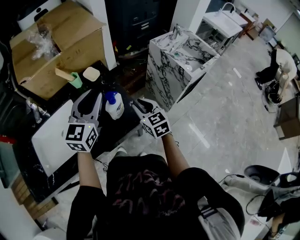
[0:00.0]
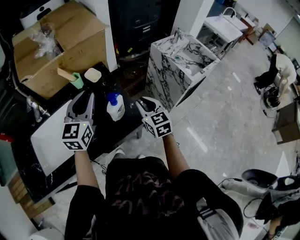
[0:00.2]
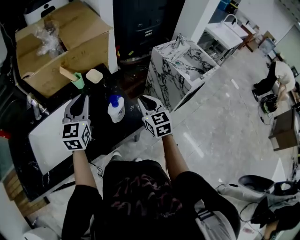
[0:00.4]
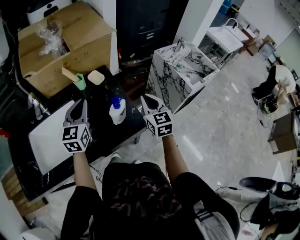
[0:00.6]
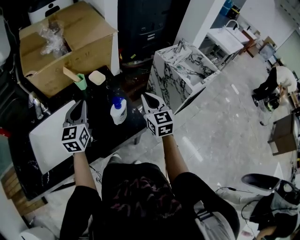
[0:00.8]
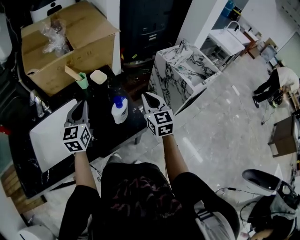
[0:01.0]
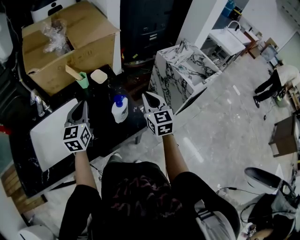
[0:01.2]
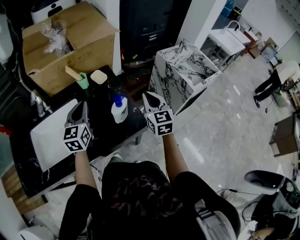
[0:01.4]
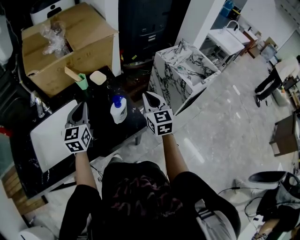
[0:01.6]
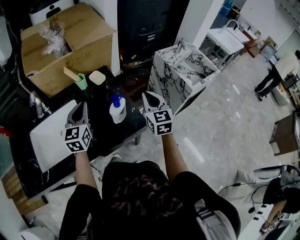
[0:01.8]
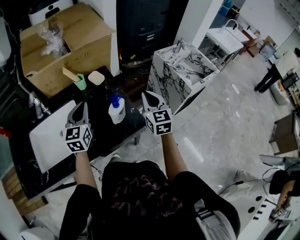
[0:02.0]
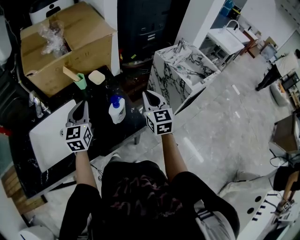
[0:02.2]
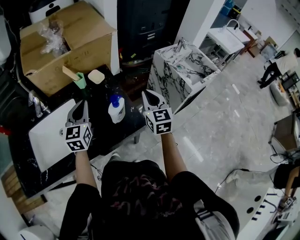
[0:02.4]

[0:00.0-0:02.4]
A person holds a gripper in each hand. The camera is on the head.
0:00.0 to 0:01.2: The left gripper heads to the left and downward, covering approximately 10 cm, and closes, while the right gripper heads upward, covering approximately 10 cm, and closes.
0:01.2 to 0:02.4: The grippers stay close to where they were, moving slightly.

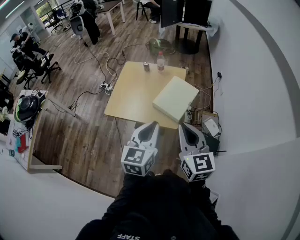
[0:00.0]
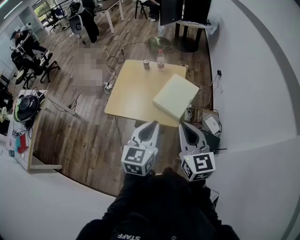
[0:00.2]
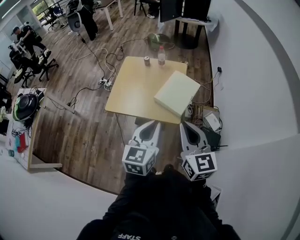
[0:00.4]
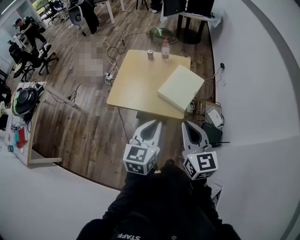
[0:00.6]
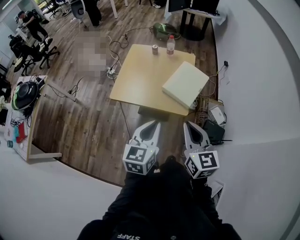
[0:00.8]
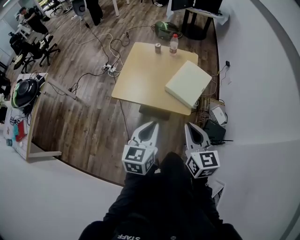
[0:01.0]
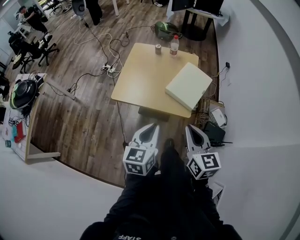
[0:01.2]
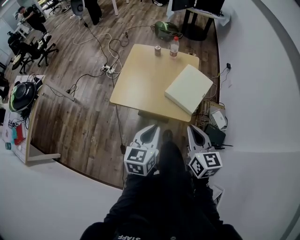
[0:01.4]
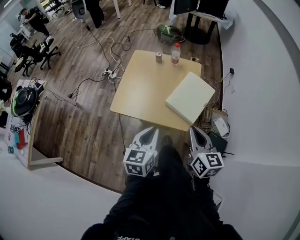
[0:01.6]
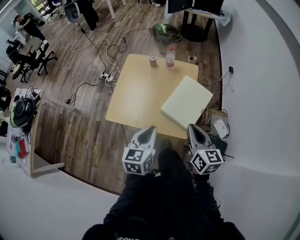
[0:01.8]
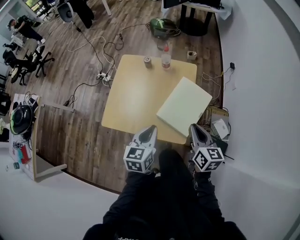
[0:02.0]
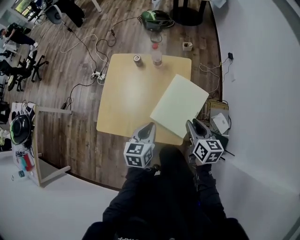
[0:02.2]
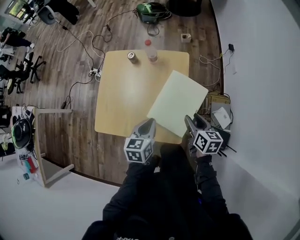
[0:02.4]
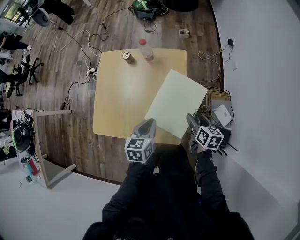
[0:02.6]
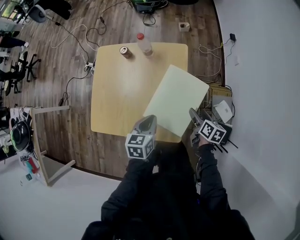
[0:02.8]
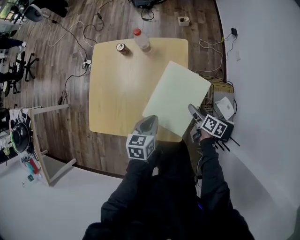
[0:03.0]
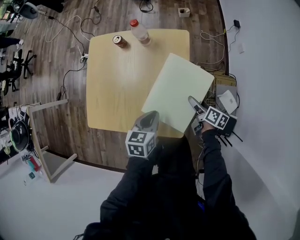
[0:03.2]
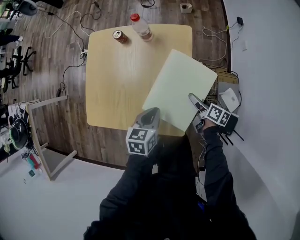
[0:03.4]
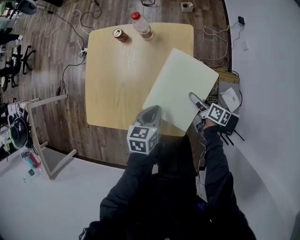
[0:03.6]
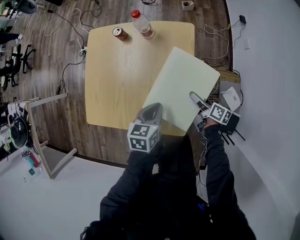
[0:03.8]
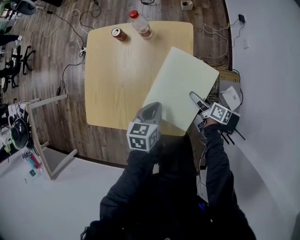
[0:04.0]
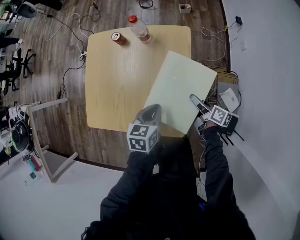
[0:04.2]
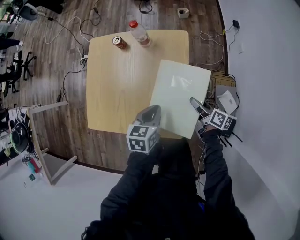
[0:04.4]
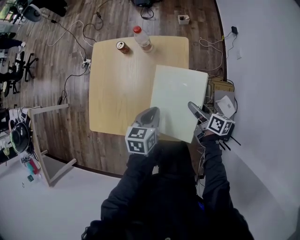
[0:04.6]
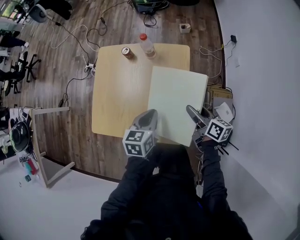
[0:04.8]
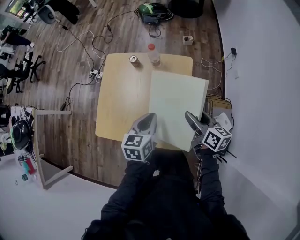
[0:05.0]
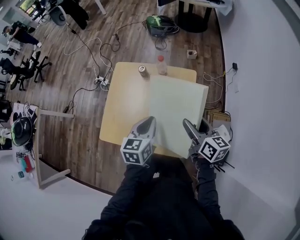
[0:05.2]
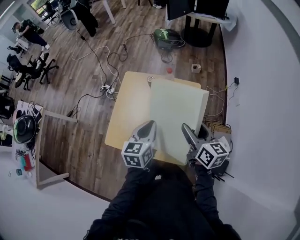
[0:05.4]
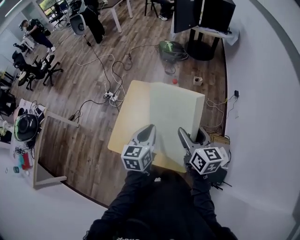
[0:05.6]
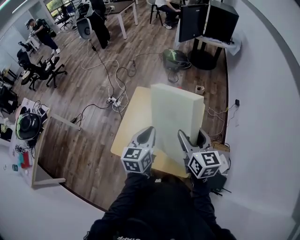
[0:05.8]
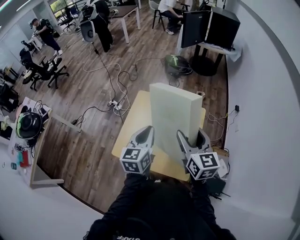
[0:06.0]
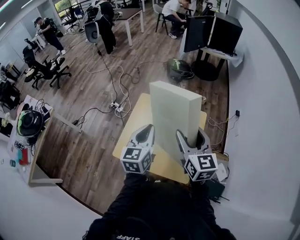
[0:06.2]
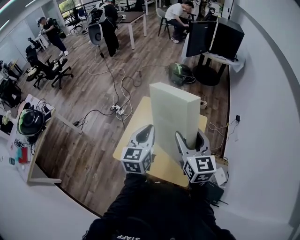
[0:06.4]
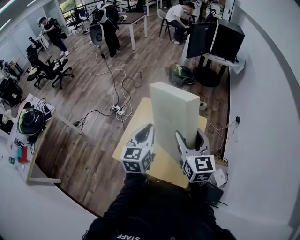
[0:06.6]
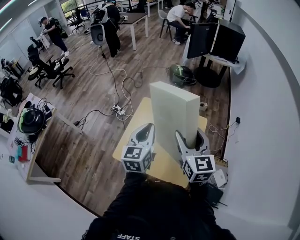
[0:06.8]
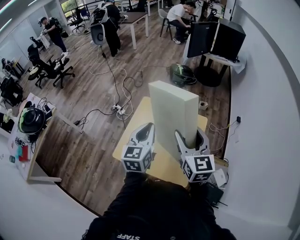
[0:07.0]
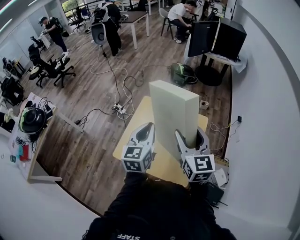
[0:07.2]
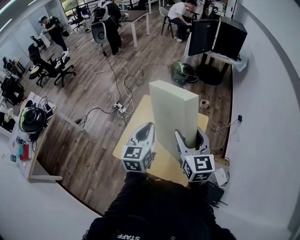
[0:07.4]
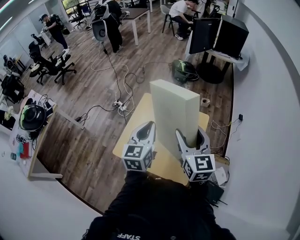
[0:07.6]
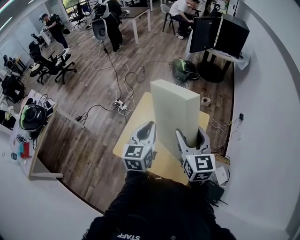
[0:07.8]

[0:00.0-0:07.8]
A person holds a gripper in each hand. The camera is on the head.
0:00.0 to 0:01.6: The left gripper goes approximately 15 cm downward, to the left and forward; the right gripper travels downward and forward by about 15 cm.
0:01.6 to 0:03.2: The right gripper is displaced downward, forward and to the right by some 50 cm, twists some 50 degrees clockwise, seen from behind, and opens up; the left gripper travels forward, downward and to the right by approximately 35 cm, and turns by some 30 degrees.
0:03.2 to 0:04.6: The right gripper is displaced upward by about 10 cm.
0:04.6 to 0:06.2: The grippers both shift upward and to the left by approximately 40 cm. The left gripper swivels roughly 40 degrees; the right gripper twists about 60 degrees counterclockwise, seen from behind.
0:06.2 to 0:07.8: The grippers move only a little.

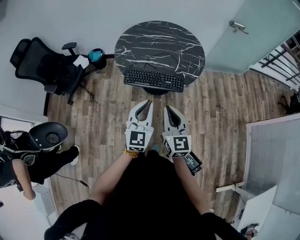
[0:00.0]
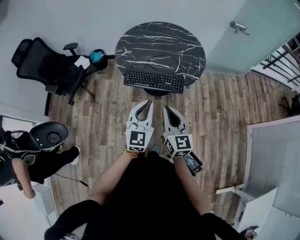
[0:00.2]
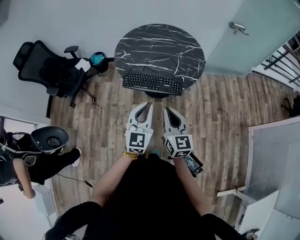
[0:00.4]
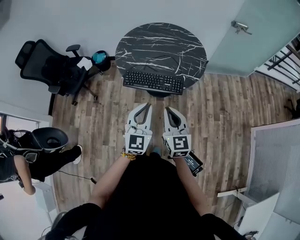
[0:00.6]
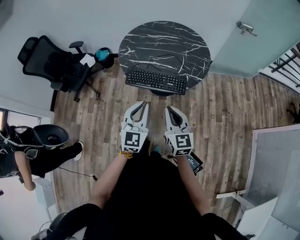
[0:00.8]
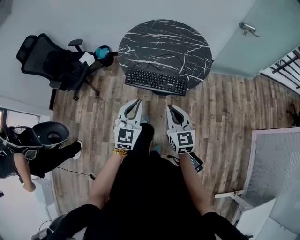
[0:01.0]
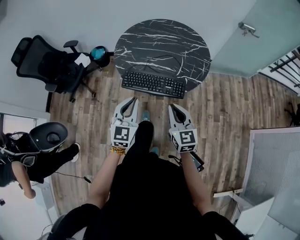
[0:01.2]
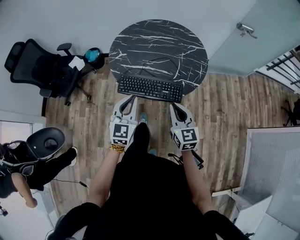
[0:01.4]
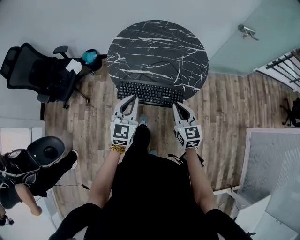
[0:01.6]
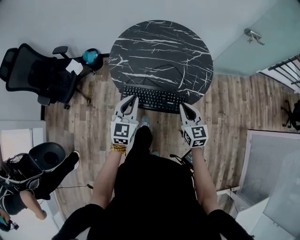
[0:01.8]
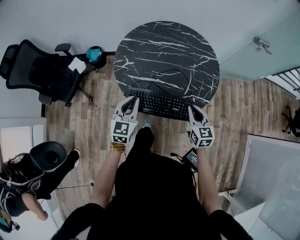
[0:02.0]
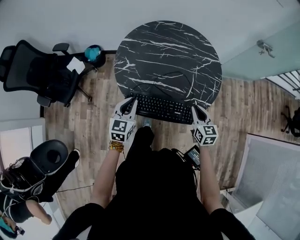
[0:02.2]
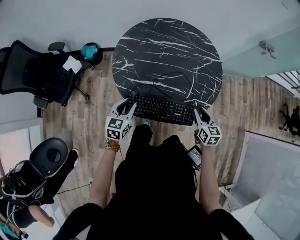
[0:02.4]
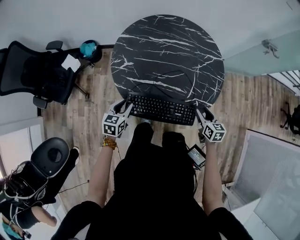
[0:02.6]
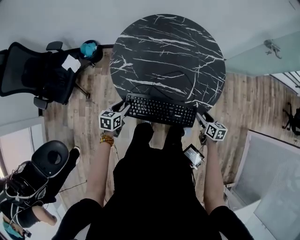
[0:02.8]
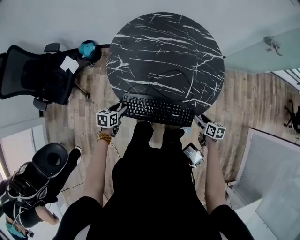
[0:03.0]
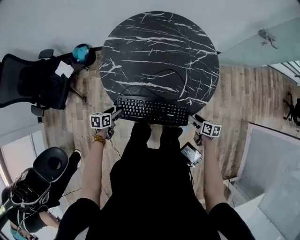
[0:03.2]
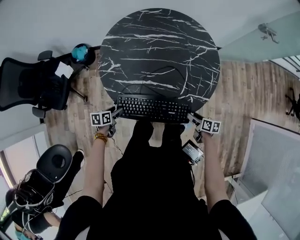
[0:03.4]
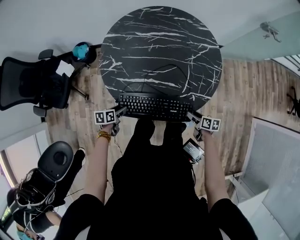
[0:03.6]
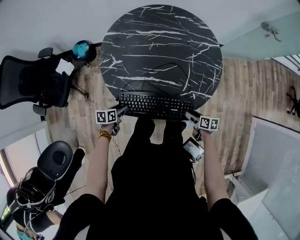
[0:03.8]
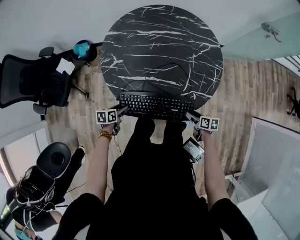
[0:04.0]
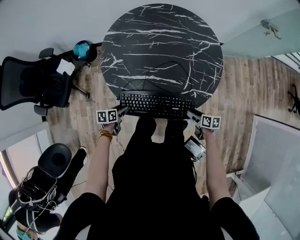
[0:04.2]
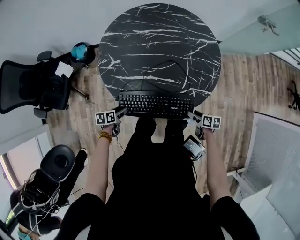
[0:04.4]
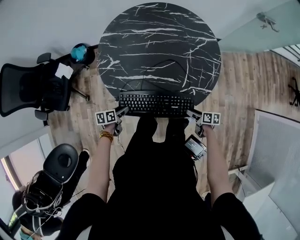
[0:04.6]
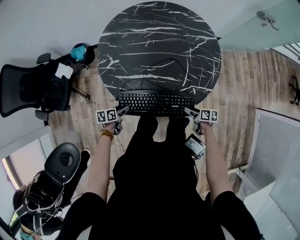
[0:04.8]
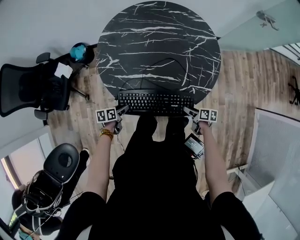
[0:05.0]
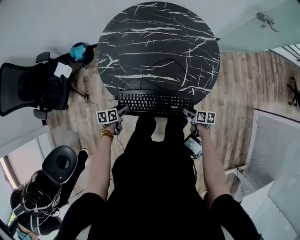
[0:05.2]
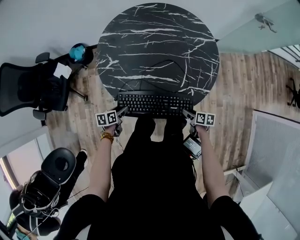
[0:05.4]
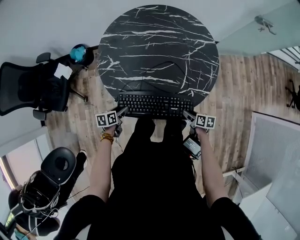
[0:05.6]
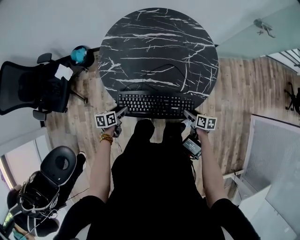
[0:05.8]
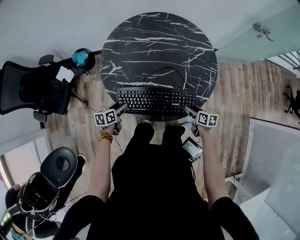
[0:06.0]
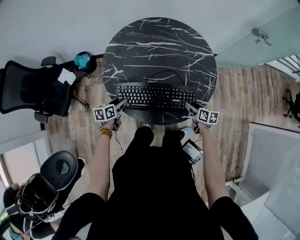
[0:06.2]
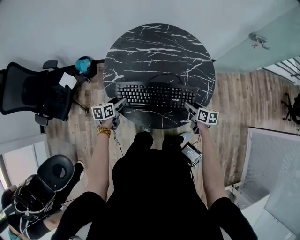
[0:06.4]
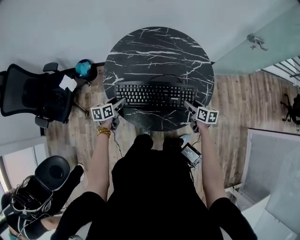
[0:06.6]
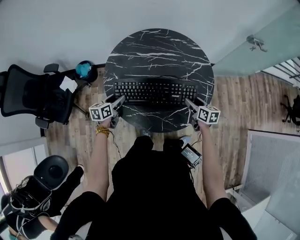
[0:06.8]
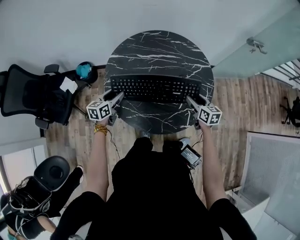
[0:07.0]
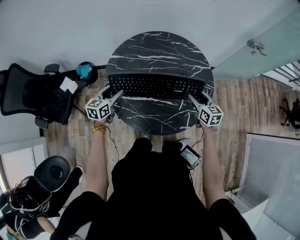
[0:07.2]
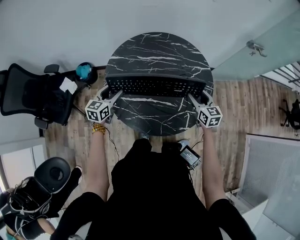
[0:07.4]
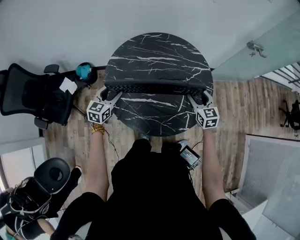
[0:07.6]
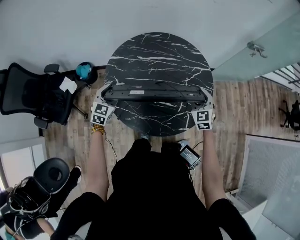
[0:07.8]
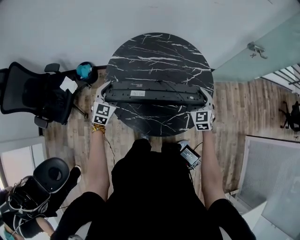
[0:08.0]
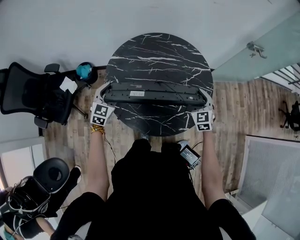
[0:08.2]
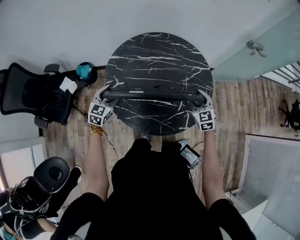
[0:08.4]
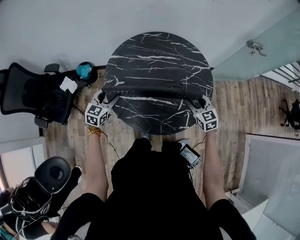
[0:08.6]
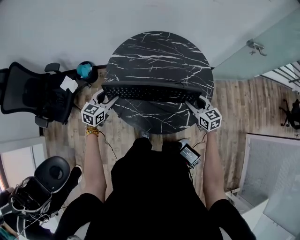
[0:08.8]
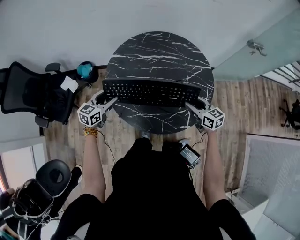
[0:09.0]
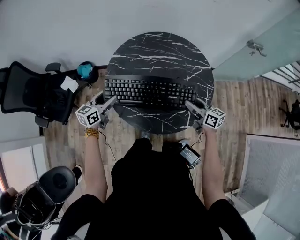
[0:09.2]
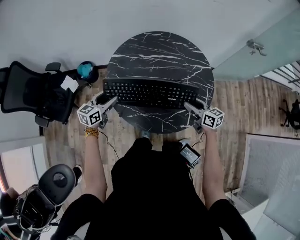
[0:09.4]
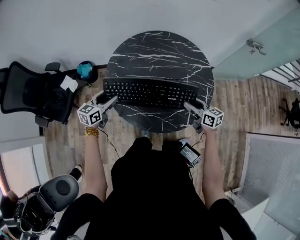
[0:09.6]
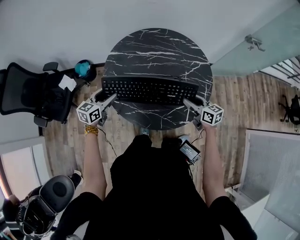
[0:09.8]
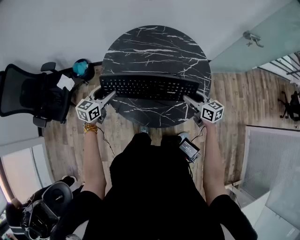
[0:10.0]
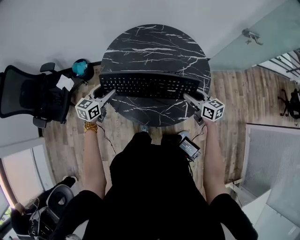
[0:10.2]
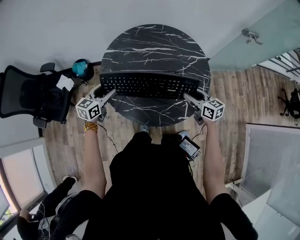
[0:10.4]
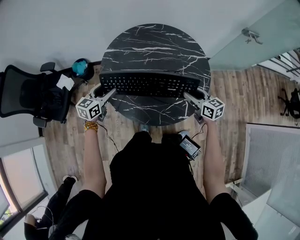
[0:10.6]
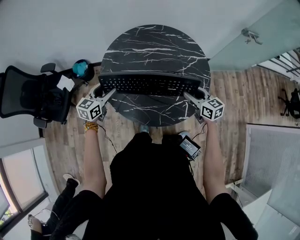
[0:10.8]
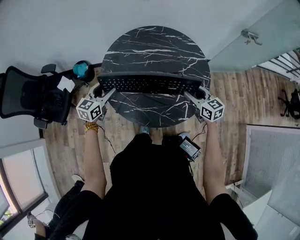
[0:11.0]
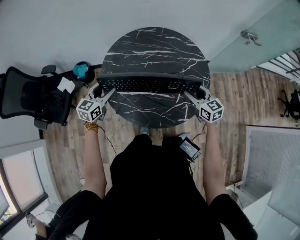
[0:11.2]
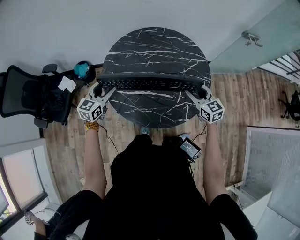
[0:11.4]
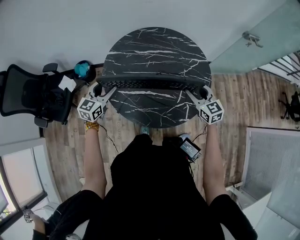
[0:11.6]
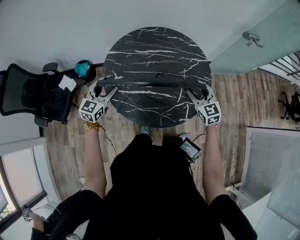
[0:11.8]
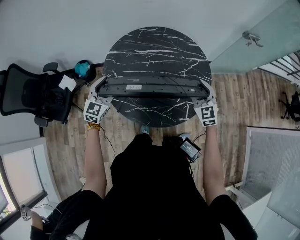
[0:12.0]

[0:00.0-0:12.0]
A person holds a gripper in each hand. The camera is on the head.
0:00.0 to 0:01.6: The right gripper is displaced forward, downward and to the right by roughly 20 cm, while the left gripper goes about 20 cm forward.
0:01.6 to 0:03.0: The left gripper goes roughly 35 cm downward, to the left and forward, tips its fingers downward by about 40 degrees, and opens up; the right gripper is displaced downward, to the right and forward by approximately 30 cm, rotates approximately 50 degrees, and opens up.
0:03.0 to 0:04.4: The right gripper changes place by about 5 cm; the left gripper ends up roughly 5 cm from where it was.
0:04.4 to 0:06.0: The right gripper shifts about 10 cm forward and upward. The left gripper shifts some 10 cm upward and forward.
0:06.0 to 0:07.6: Both grippers move upward and forward, about 25 cm. The right gripper rotates around the line of its fingers by roughly 40 degrees, counterclockwise from behind, while the left gripper turns by roughly 40 degrees.
0:07.6 to 0:09.0: The right gripper is displaced backward by about 5 cm, and rotates roughly 30 degrees.
0:09.0 to 0:10.4: The grippers stay close to where they were, moving slightly.
0:10.4 to 0:12.0: Both grippers move upward, approximately 5 cm. The right gripper rolls counterclockwise, seen from behind, by some 40 degrees, while the left gripper rotates about 30 degrees.

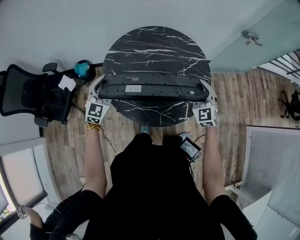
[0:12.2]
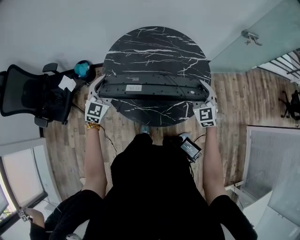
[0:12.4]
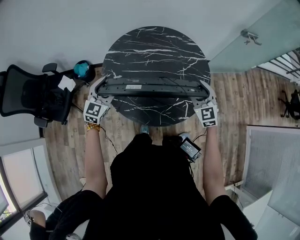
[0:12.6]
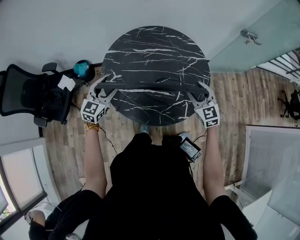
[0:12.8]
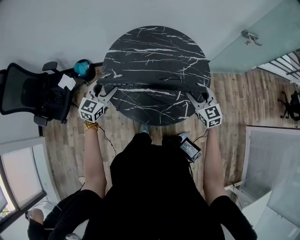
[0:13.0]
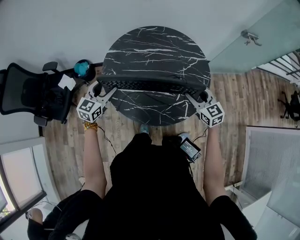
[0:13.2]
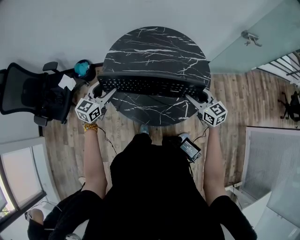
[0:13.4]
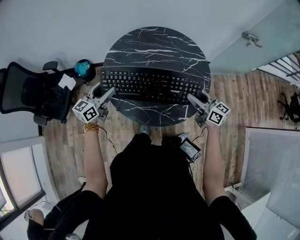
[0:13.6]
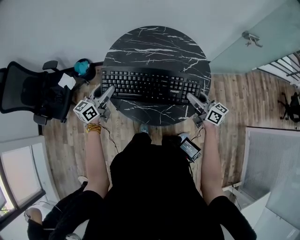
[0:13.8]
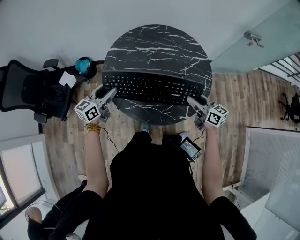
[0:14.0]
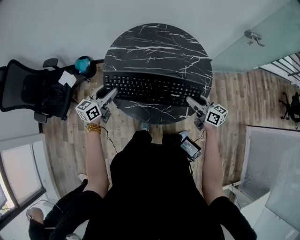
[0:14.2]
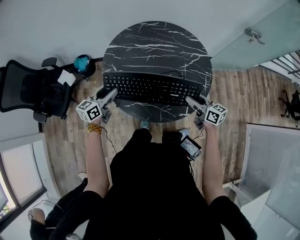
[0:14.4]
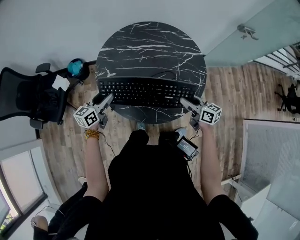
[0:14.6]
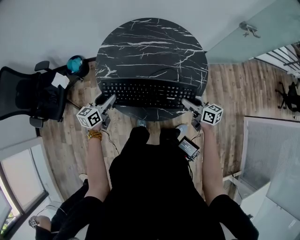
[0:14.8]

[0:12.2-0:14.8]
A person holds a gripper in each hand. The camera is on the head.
0:12.2 to 0:13.4: The right gripper rotates about 40 degrees. The left gripper turns by about 30 degrees.
0:13.4 to 0:14.8: The grippers both shift downward by roughly 5 cm. The left gripper swivels roughly 20 degrees; the right gripper turns by about 30 degrees.
